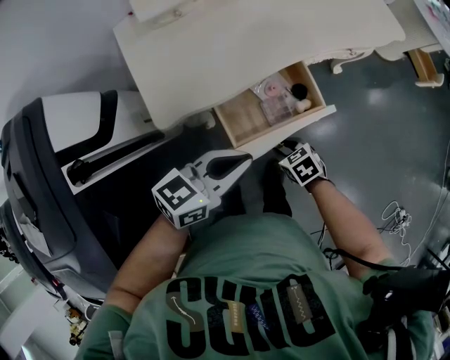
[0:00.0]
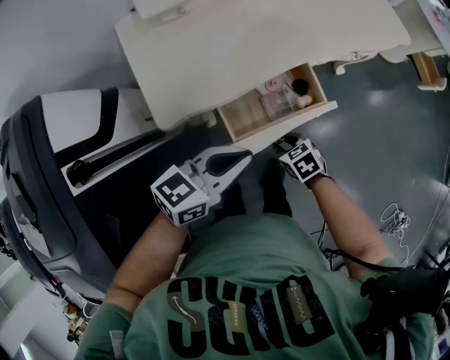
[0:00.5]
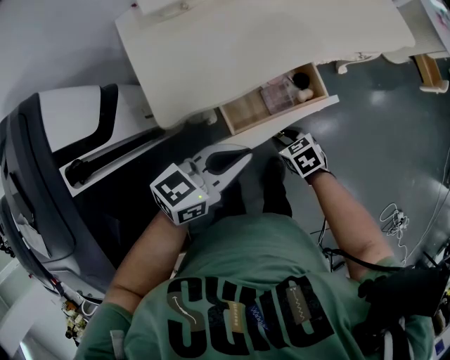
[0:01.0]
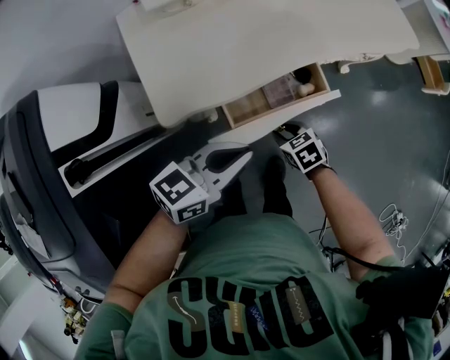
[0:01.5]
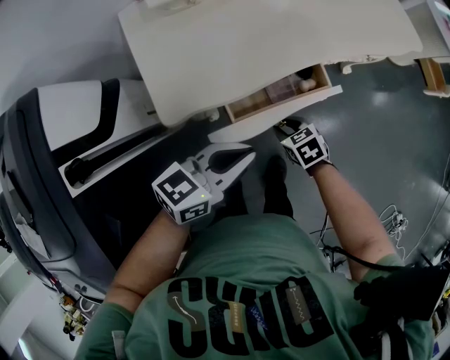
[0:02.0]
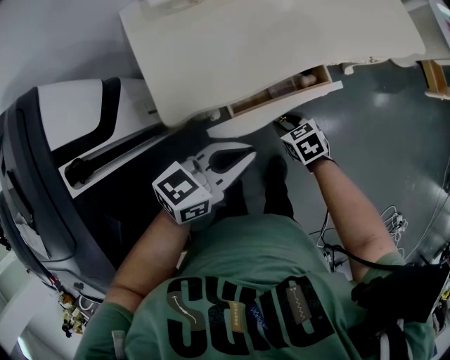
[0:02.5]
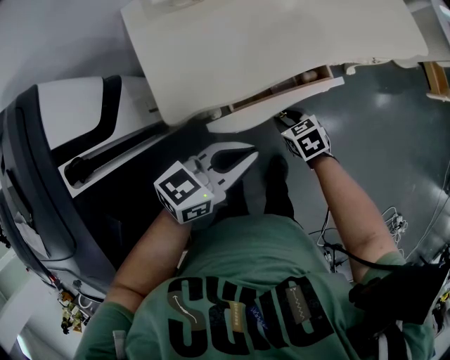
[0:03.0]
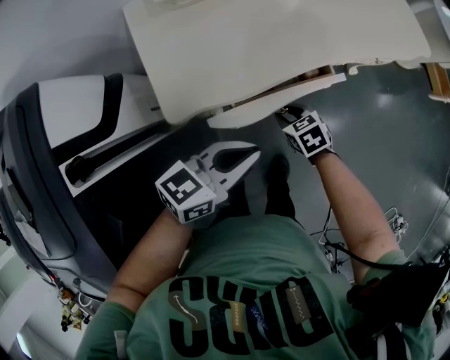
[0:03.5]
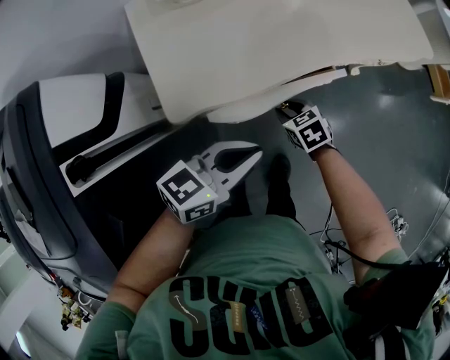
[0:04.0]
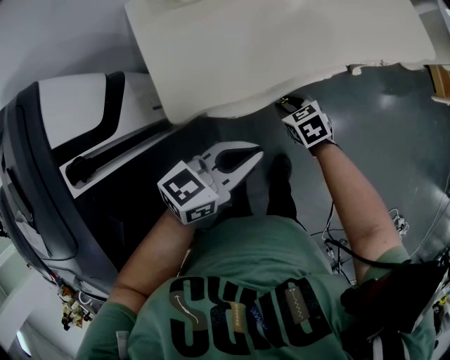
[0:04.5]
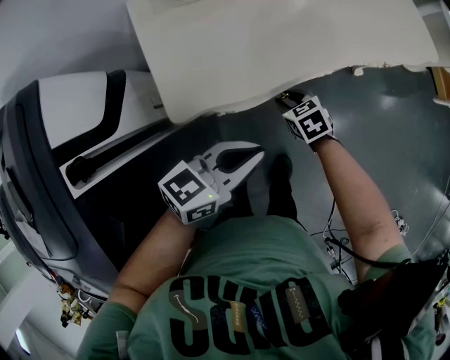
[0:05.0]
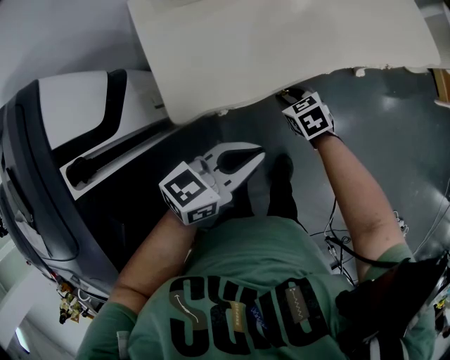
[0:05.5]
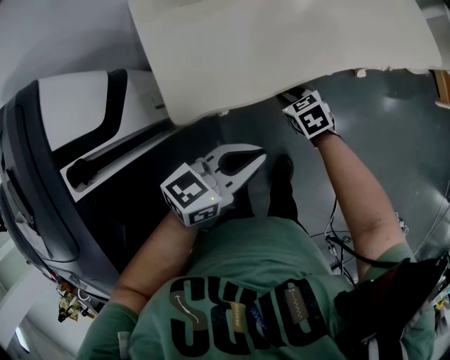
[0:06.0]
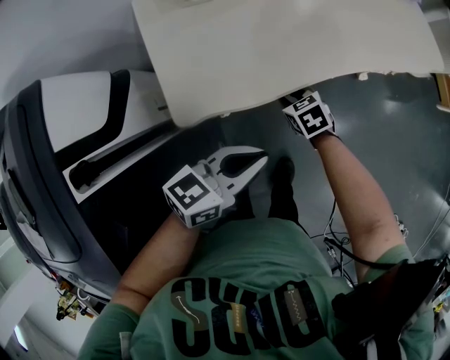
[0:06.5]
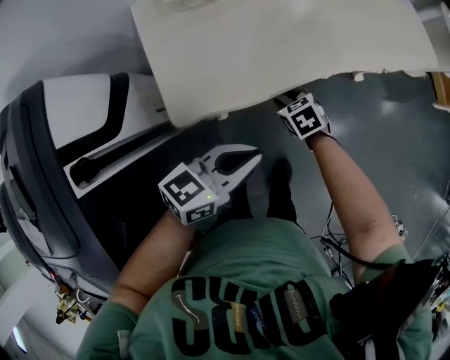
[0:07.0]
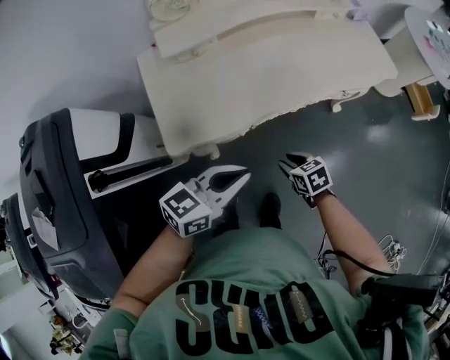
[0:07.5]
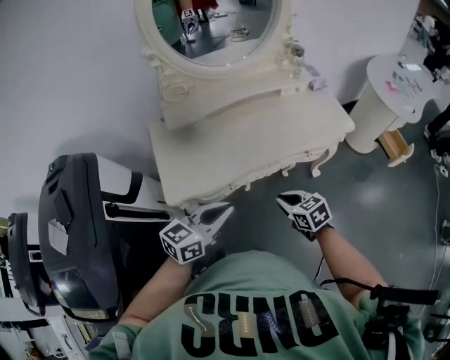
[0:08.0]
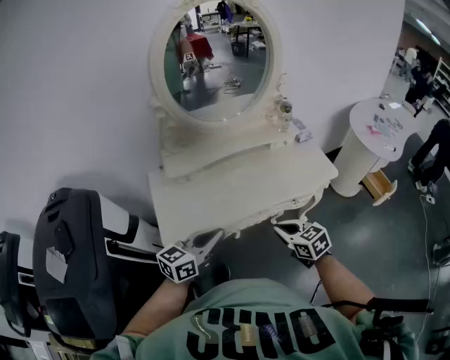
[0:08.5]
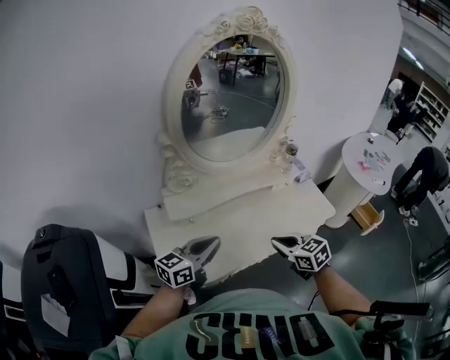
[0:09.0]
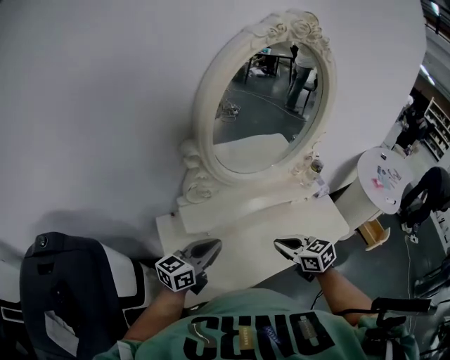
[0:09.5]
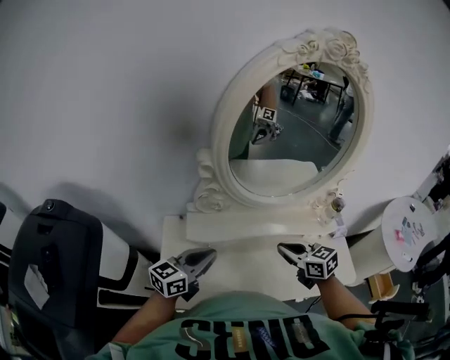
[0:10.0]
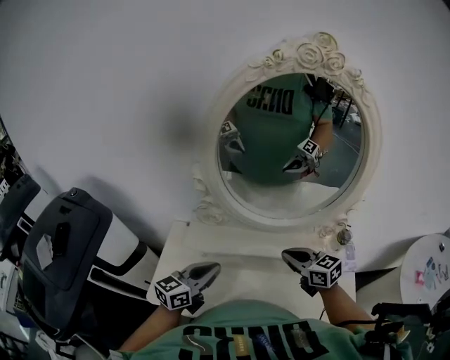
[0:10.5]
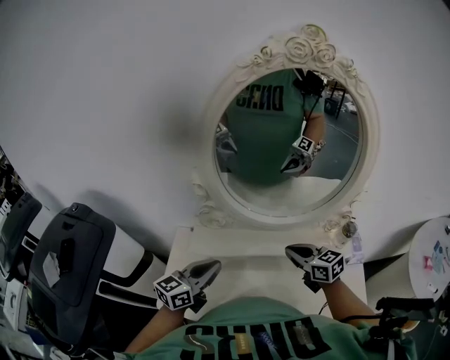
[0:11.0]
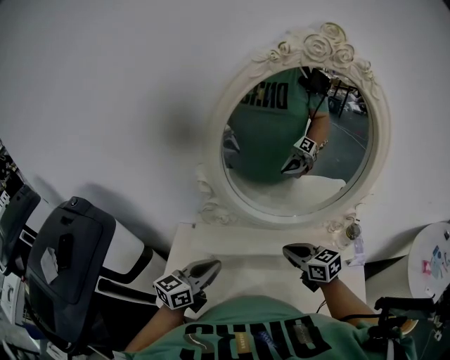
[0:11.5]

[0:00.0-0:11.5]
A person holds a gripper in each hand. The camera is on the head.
0:00.0 to 0:02.0: The right gripper moves about 10 cm.
0:02.0 to 0:04.0: The right gripper heads forward, covering roughly 5 cm.
0:04.0 to 0:06.0: The right gripper moves forward, some 5 cm.
0:06.0 to 0:07.5: The left gripper heads upward, covering about 10 cm. Meanwhile the right gripper heads to the right, backward and upward, covering some 15 cm.
0:07.5 to 0:09.5: The left gripper is displaced forward, upward and to the left by roughly 30 cm, and swivels roughly 20 degrees, while the right gripper heads upward and forward, covering some 40 cm, turns by about 30 degrees, and closes.
0:09.5 to 0:11.5: The left gripper changes place by about 10 cm, and turns by approximately 30 degrees. Meanwhile the right gripper moves approximately 20 cm, and rotates some 30 degrees.

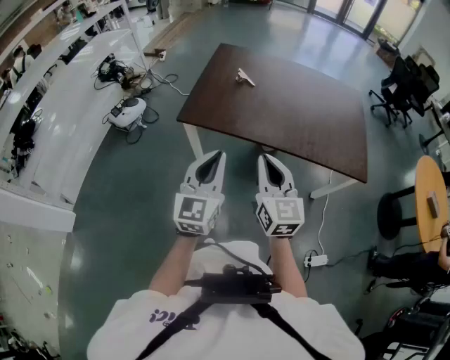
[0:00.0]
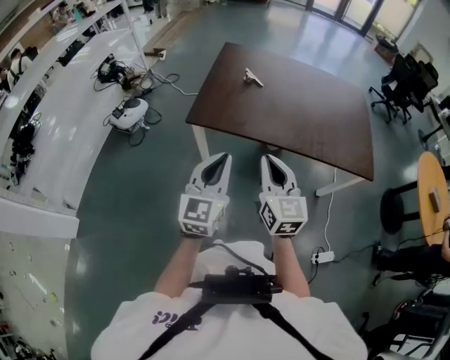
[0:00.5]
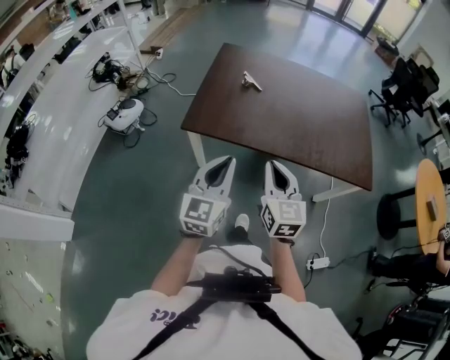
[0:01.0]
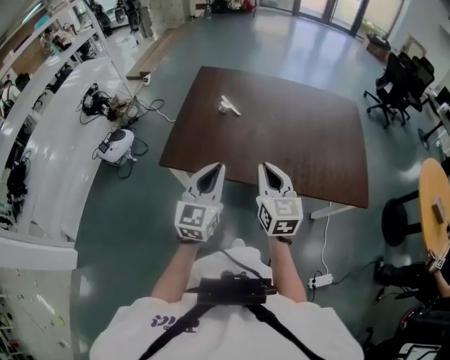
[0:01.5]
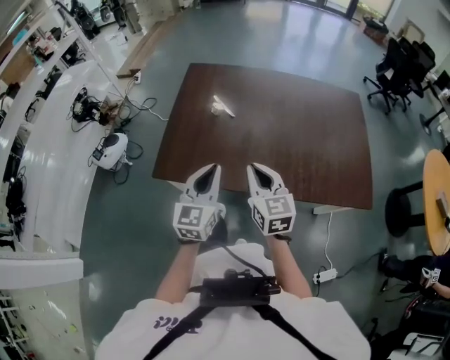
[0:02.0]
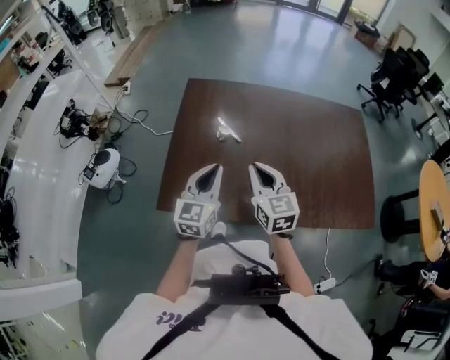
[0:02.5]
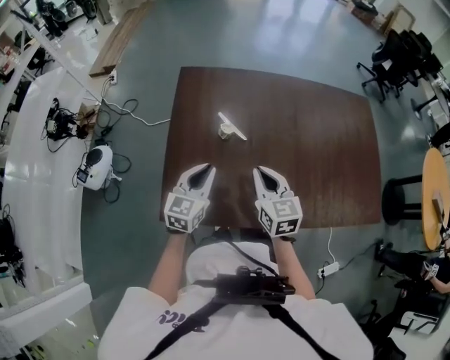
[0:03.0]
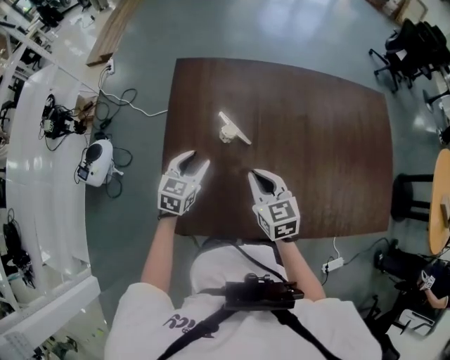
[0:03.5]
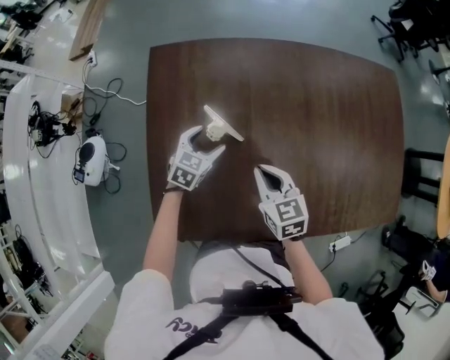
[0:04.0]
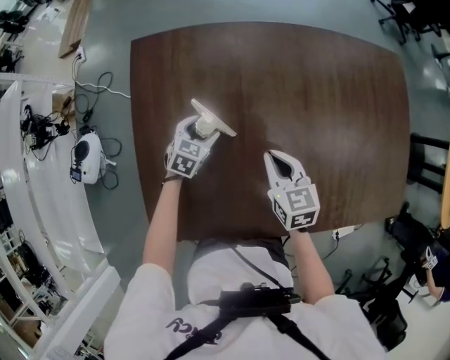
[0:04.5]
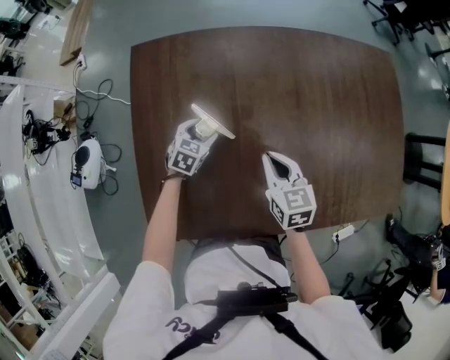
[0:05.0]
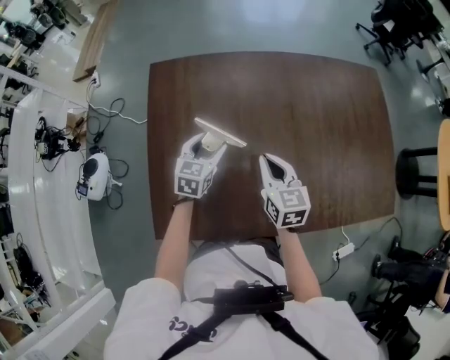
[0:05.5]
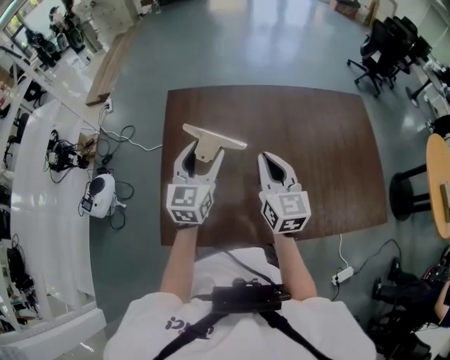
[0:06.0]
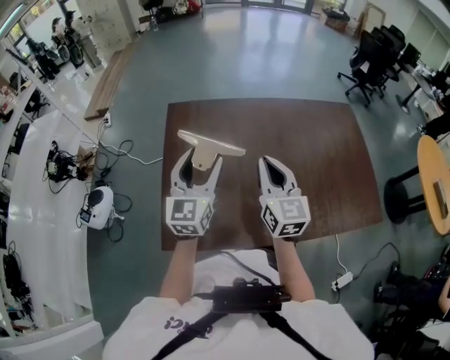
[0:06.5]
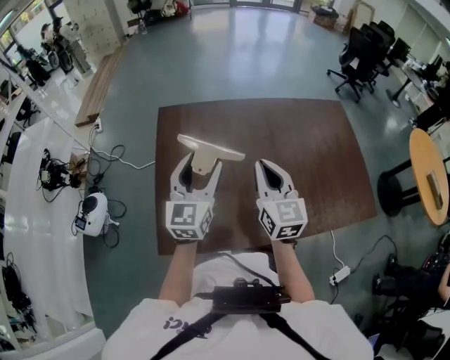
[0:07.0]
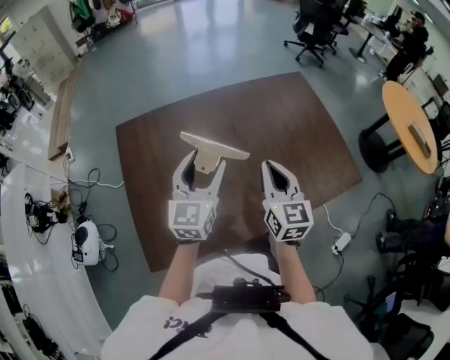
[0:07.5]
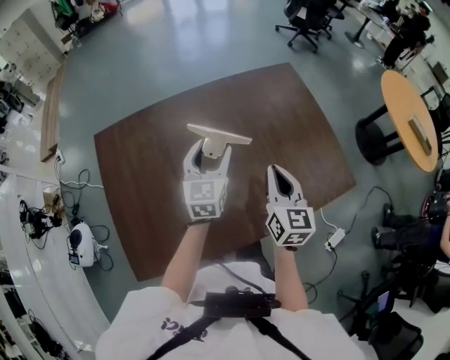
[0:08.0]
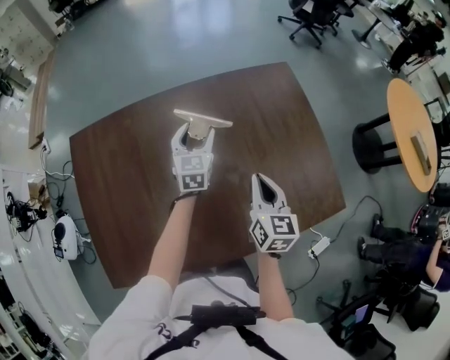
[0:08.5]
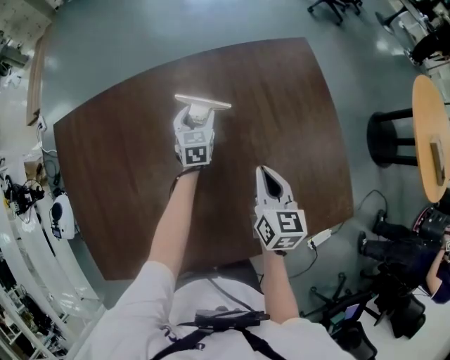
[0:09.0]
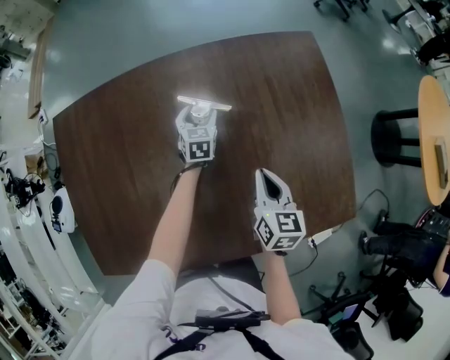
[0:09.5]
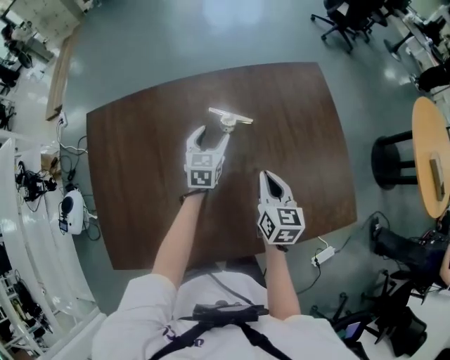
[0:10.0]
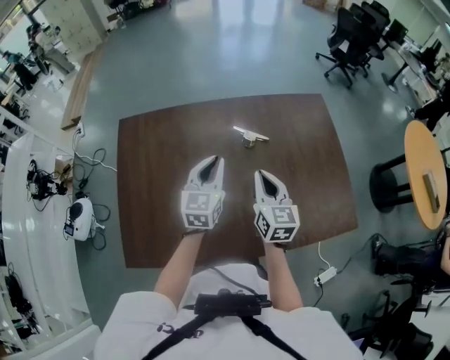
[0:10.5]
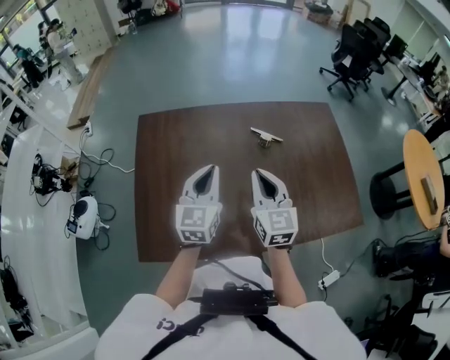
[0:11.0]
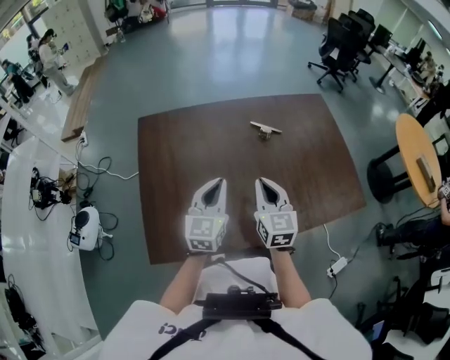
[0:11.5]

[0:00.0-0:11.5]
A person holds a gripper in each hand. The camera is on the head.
0:00.0 to 0:02.0: Both grippers move forward, some 30 cm.
0:02.0 to 0:04.0: The grippers both shift forward and downward by some 40 cm. The left gripper points its fingers approximately 40 degrees further downward, and opens its fingers. The right gripper rotates some 20 degrees.
0:04.0 to 0:06.0: Both grippers travel together upward, approximately 25 cm. The left gripper tips its fingers upward by some 40 degrees. The right gripper changes its angle by roughly 30 degrees.
0:06.0 to 0:07.5: Both grippers travel together to the right, about 15 cm. The right gripper swivels some 20 degrees.
0:07.5 to 0:09.5: The right gripper heads downward, to the right and forward, covering about 40 cm, and swivels some 30 degrees, while the left gripper travels downward, forward and to the right by roughly 60 cm, and points its fingers some 40 degrees further downward.
0:09.5 to 0:11.5: The right gripper goes about 40 cm to the left, backward and upward, and rotates approximately 30 degrees; the left gripper is displaced backward, upward and to the left by approximately 60 cm, tilts its fingers some 30 degrees upward, and closes its fingers.

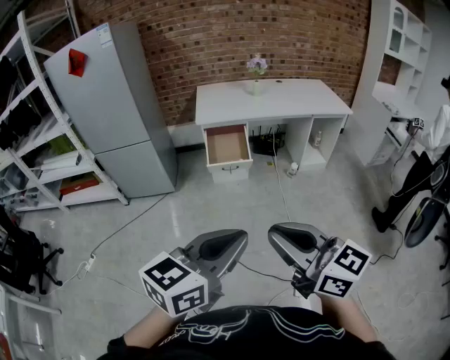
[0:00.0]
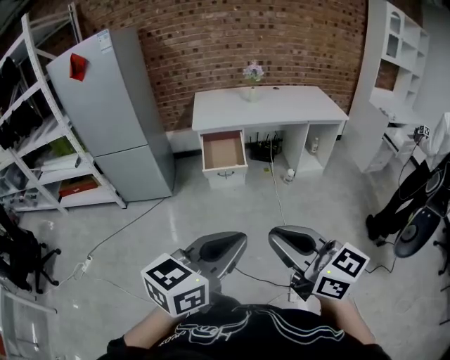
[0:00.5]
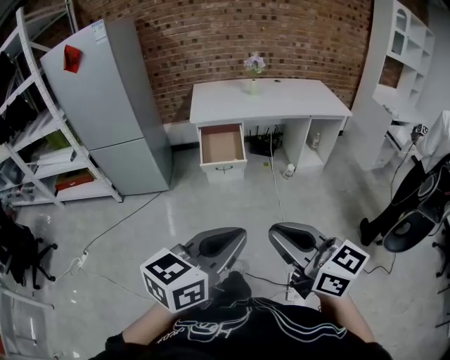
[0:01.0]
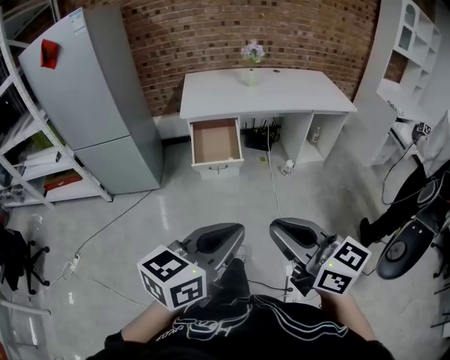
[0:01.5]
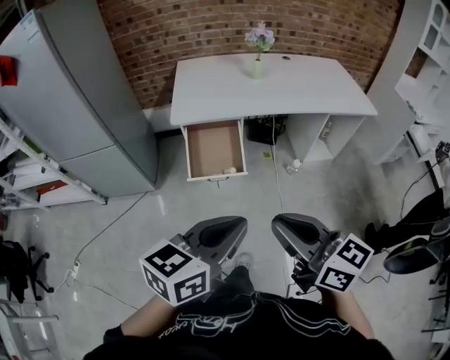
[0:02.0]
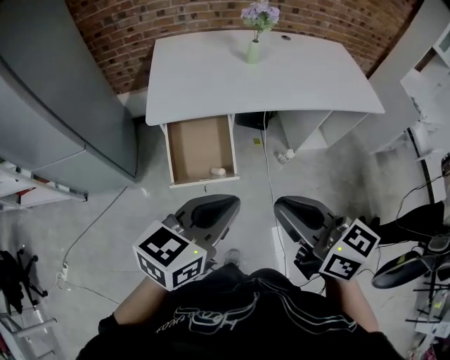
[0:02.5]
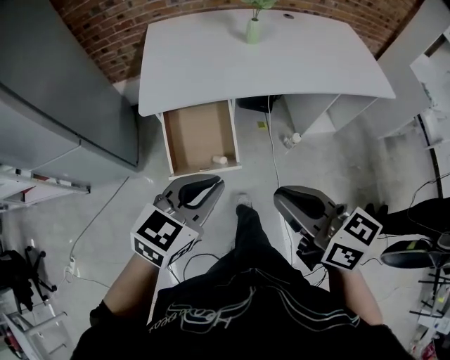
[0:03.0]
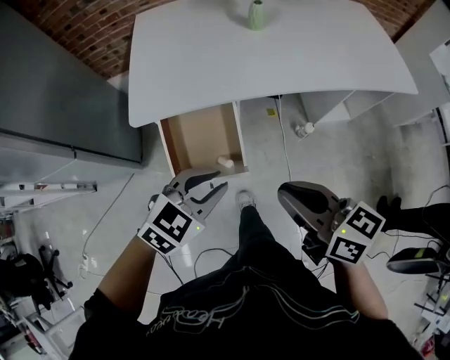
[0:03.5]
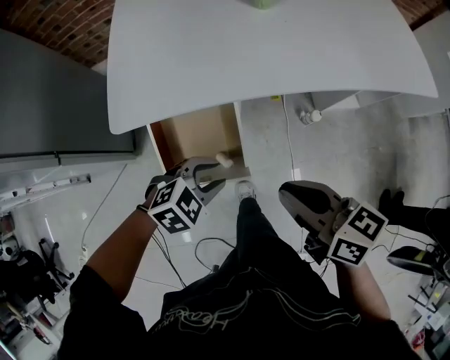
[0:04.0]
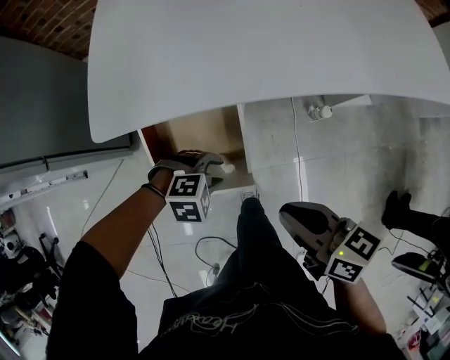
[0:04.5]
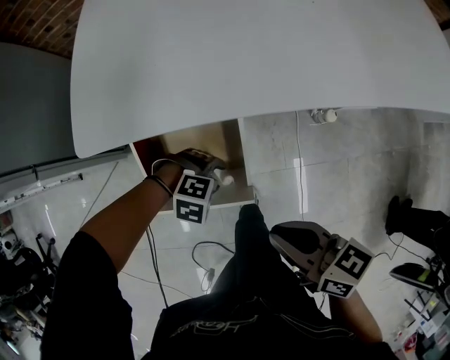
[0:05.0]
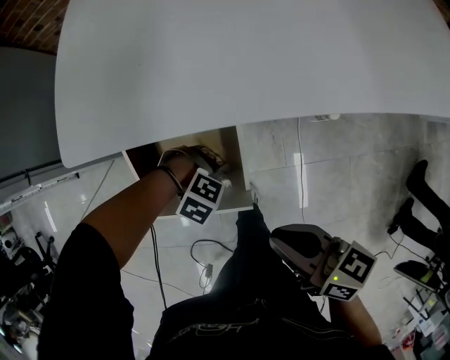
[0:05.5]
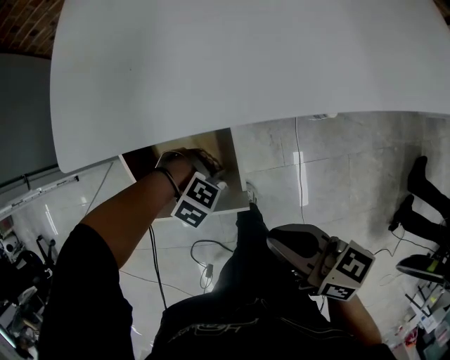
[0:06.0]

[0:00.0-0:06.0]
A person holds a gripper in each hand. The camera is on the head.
0:00.0 to 0:02.0: The two grippers travel together, forward, roughly 40 cm.
0:02.0 to 0:04.0: Both grippers are carried forward, some 40 cm. The left gripper moves downward, some 35 cm, tilts its fingers roughly 40 degrees downward, and opens its fingers; the right gripper moves downward, some 25 cm, and changes its angle by roughly 20 degrees.
0:04.0 to 0:06.0: The right gripper moves downward, some 15 cm. The left gripper goes some 25 cm downward, and swivels about 60 degrees.
